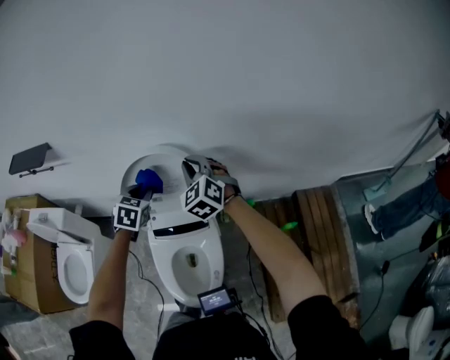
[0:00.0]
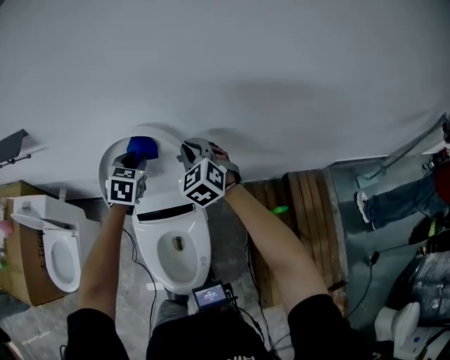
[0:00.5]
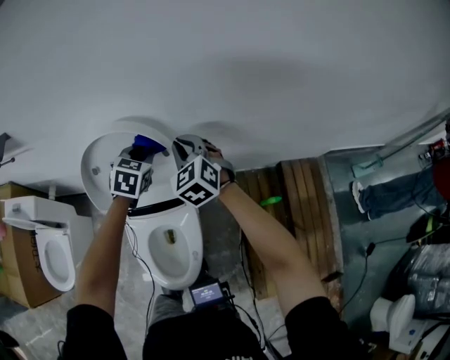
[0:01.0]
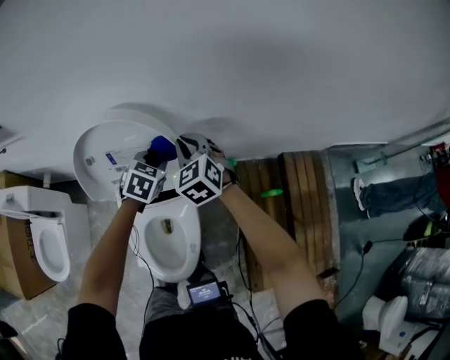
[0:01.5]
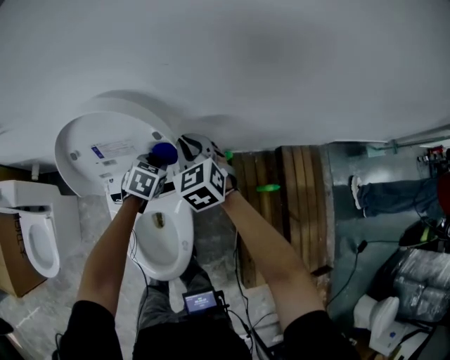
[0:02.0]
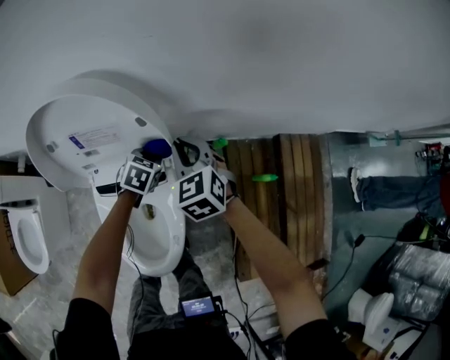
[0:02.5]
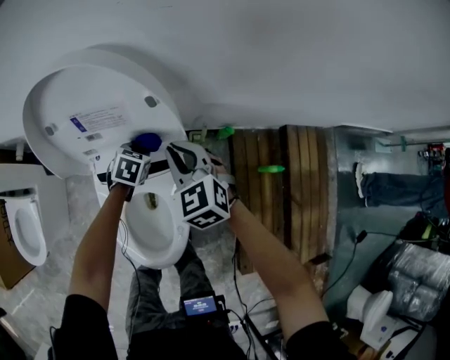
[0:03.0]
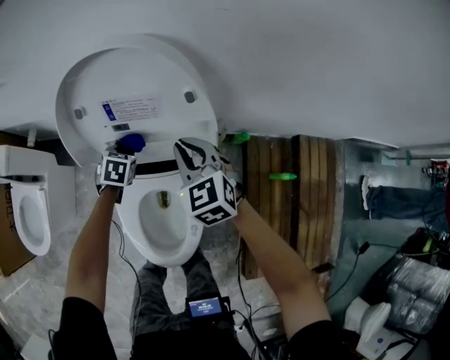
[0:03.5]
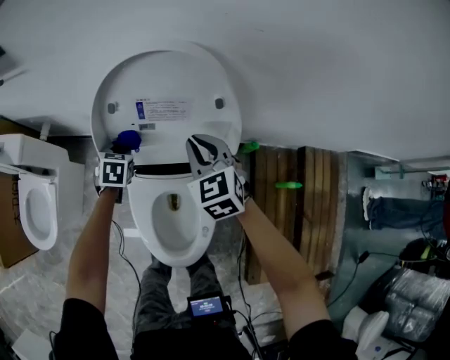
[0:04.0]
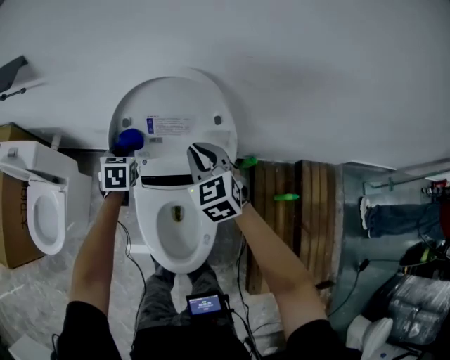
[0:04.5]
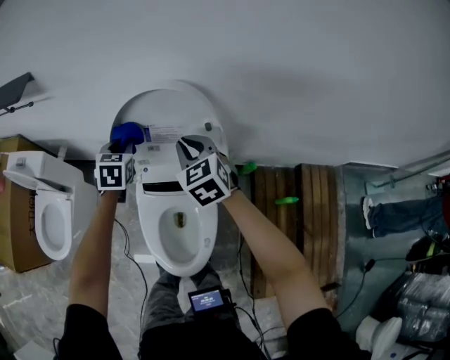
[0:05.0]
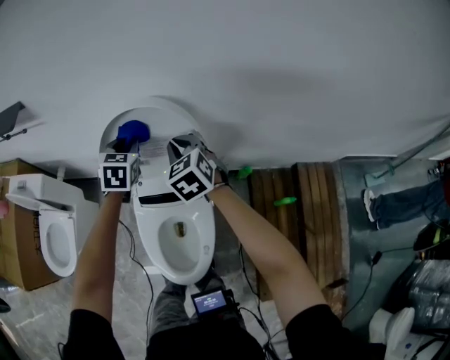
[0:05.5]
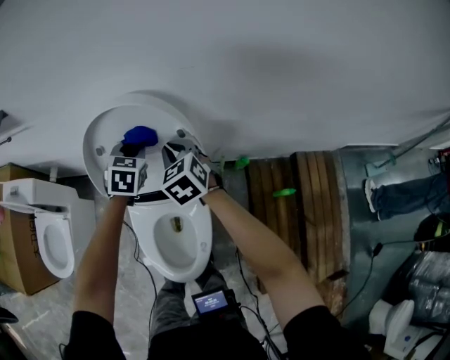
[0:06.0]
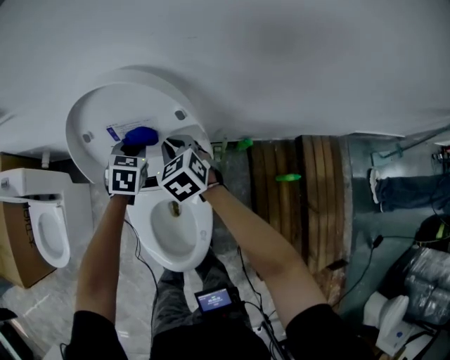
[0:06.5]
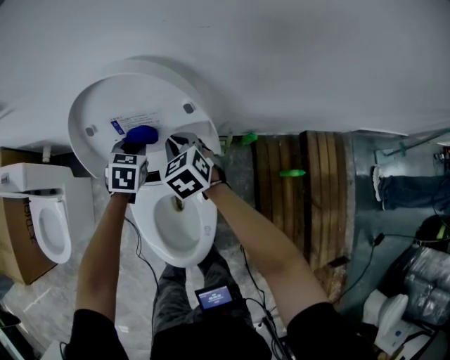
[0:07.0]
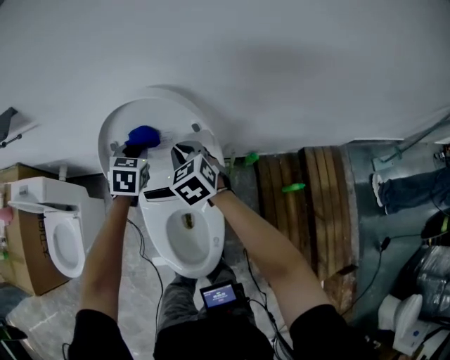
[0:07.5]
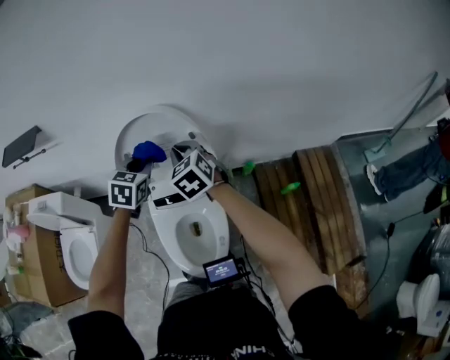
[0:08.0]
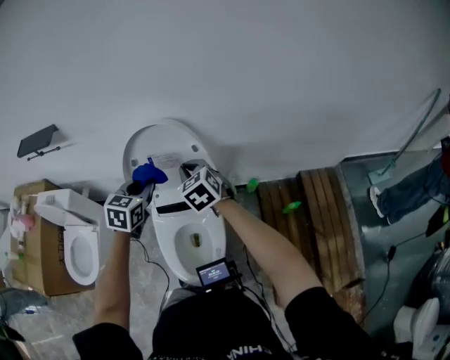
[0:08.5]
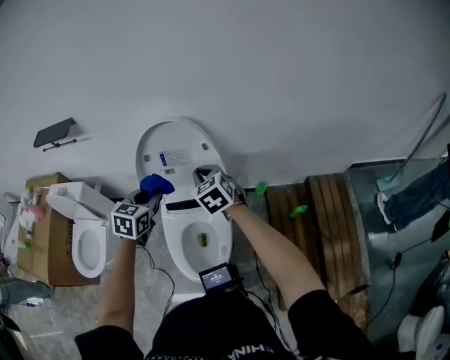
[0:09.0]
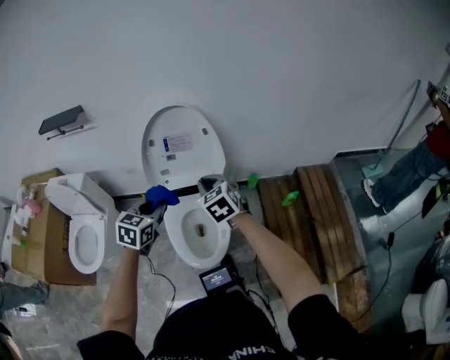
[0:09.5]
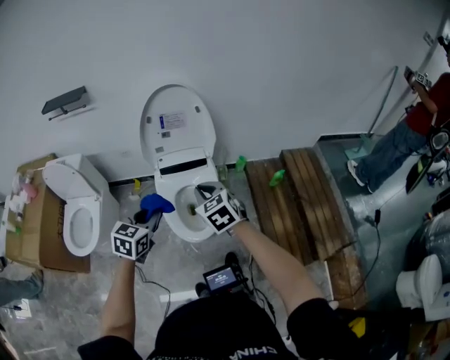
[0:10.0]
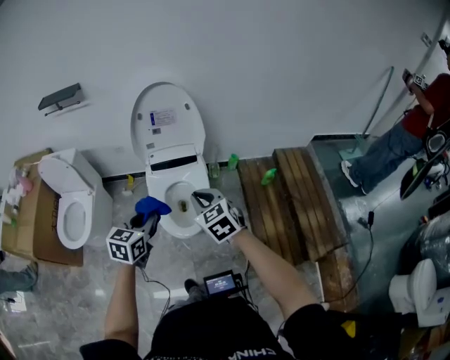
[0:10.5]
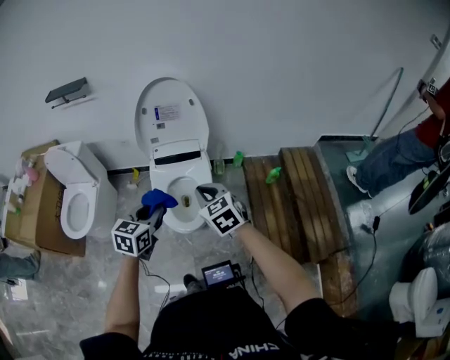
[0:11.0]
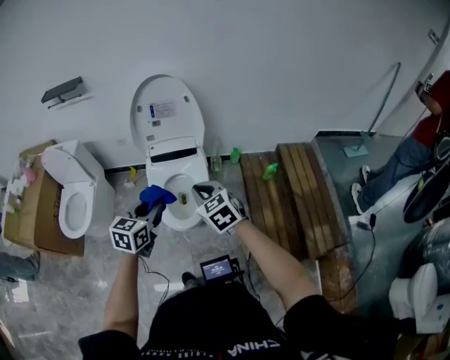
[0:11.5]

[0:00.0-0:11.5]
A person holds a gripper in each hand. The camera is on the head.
0:00.0 to 0:02.0: The grippers both shift downward and to the right by some 25 cm. The left gripper changes its angle by some 20 degrees. The right gripper turns by approximately 20 degrees.
0:02.0 to 0:04.0: The right gripper heads to the left and backward, covering approximately 15 cm; the left gripper goes about 30 cm to the left, and swivels about 30 degrees.
0:04.0 to 0:06.0: The left gripper heads upward and to the right, covering about 25 cm.
0:06.0 to 0:07.5: The left gripper moves approximately 10 cm downward and comes back, while the right gripper reaches roughly 10 cm downward, then returns.
0:07.5 to 0:09.5: Both grippers move backward, some 30 cm.
0:09.5 to 0:11.5: Both grippers travel together backward, approximately 25 cm.

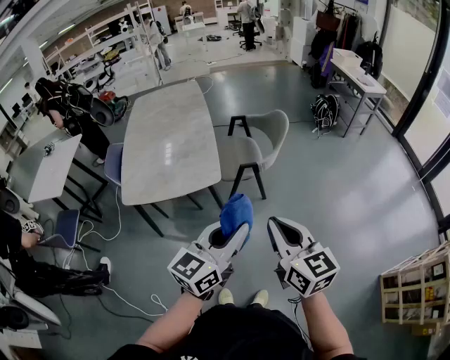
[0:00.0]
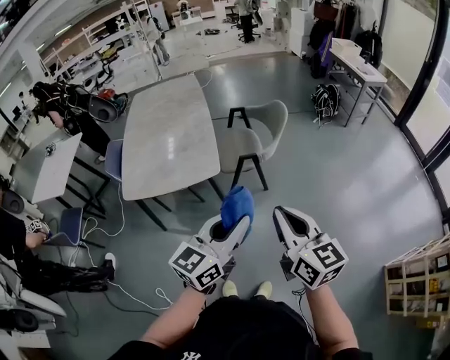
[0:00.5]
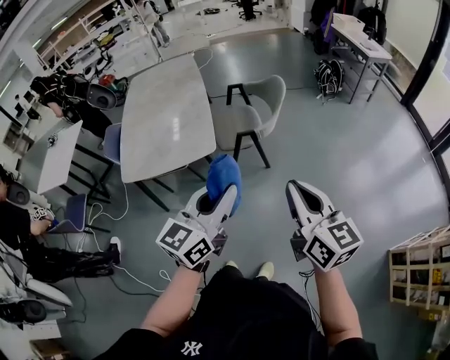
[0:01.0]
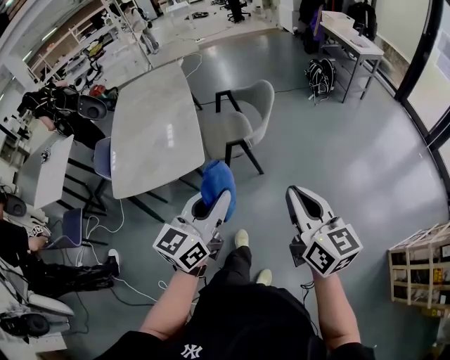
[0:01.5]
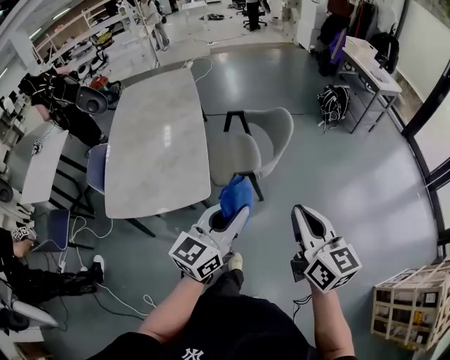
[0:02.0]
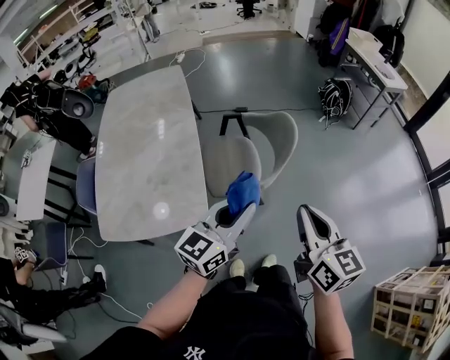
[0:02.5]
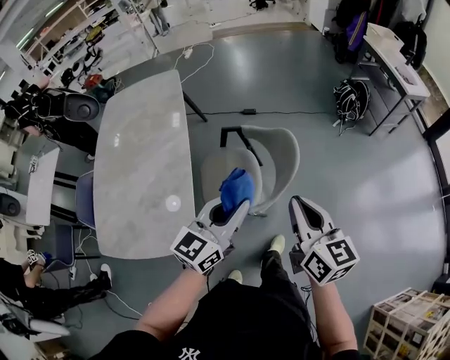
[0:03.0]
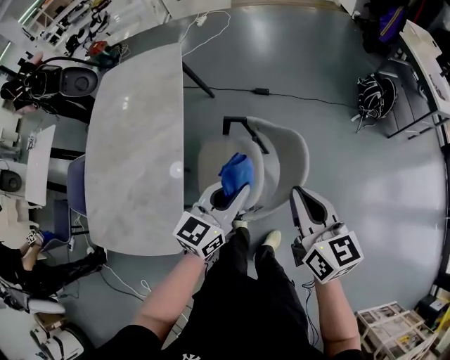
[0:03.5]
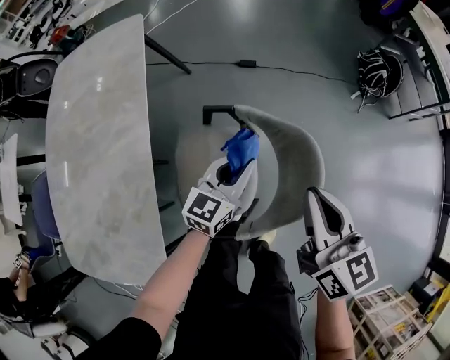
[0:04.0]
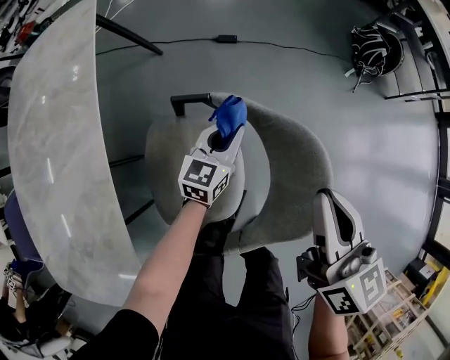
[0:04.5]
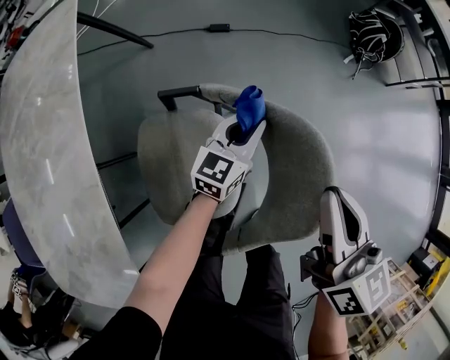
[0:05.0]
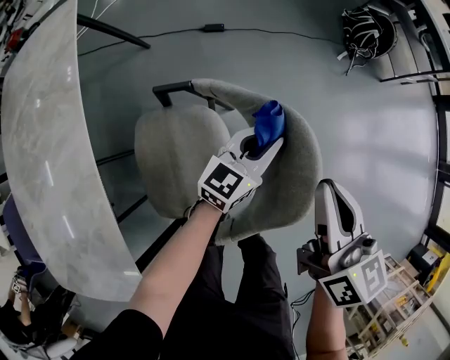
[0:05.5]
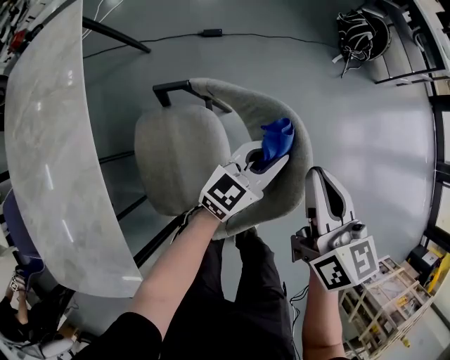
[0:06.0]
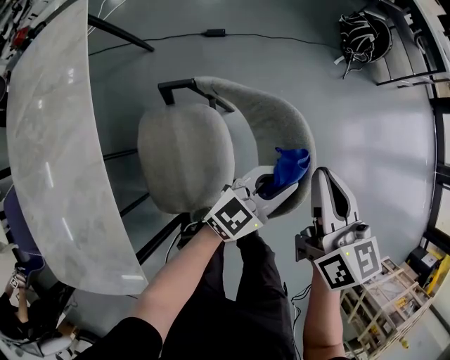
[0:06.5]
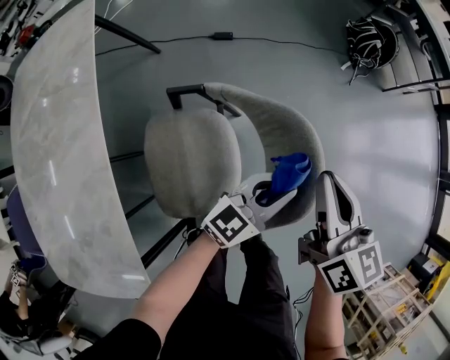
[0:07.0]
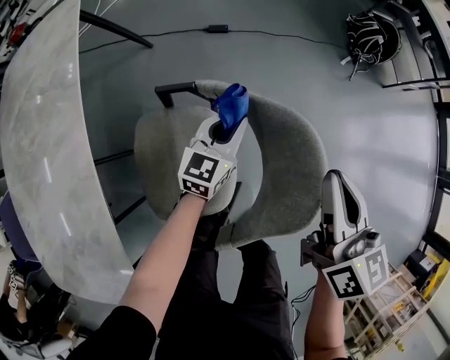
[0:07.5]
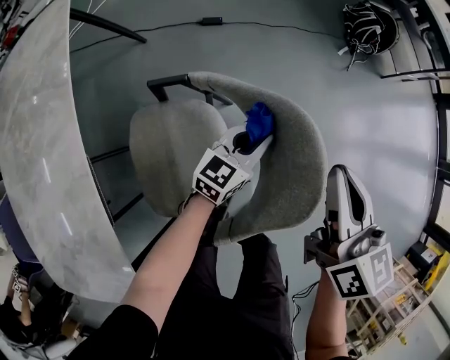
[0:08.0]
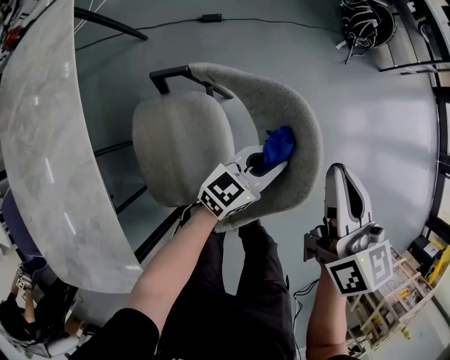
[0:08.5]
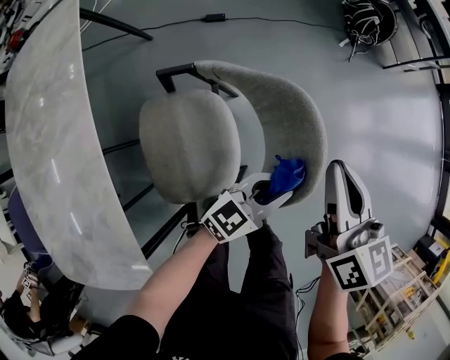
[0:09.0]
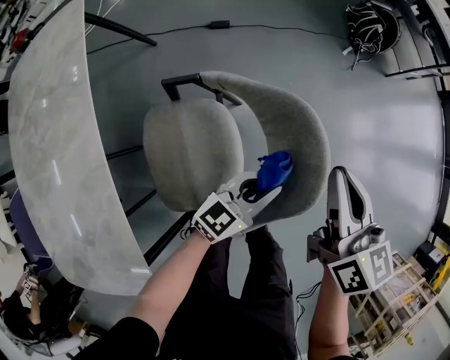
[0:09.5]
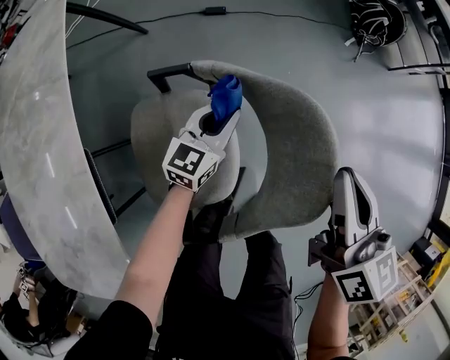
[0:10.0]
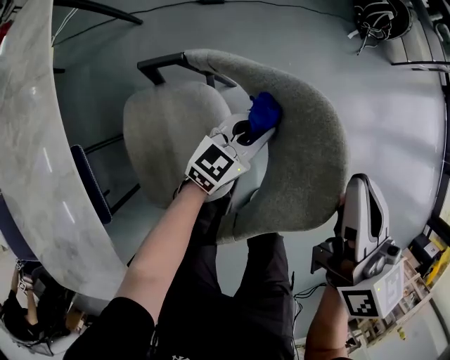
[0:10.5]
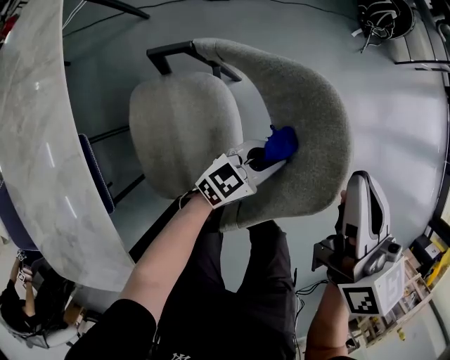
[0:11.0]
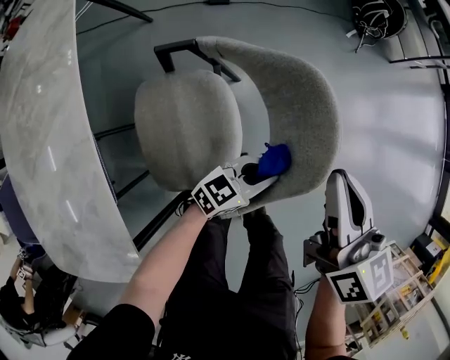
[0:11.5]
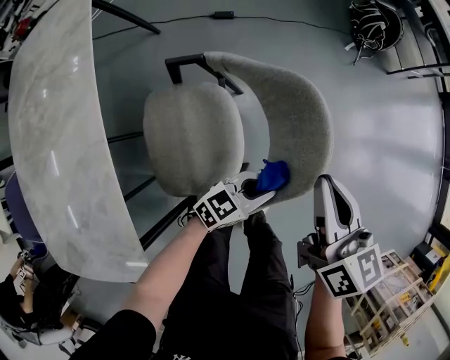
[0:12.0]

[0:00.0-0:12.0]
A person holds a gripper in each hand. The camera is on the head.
0:00.0 to 0:02.0: Both grippers travel together forward, roughly 20 cm.
0:02.0 to 0:04.0: The pair of grippers is taken forward, approximately 60 cm. The left gripper moves downward, about 30 cm.
0:04.0 to 0:06.0: The left gripper shifts about 20 cm to the right and downward, and turns by some 20 degrees; the right gripper goes some 15 cm downward and to the right.
0:06.0 to 0:08.0: The left gripper travels downward by roughly 10 cm, and moves approximately 15 cm to the left and comes back.
0:08.0 to 0:10.0: The left gripper travels to the left by approximately 10 cm.
0:10.0 to 0:12.0: The right gripper heads backward, covering approximately 10 cm, while the left gripper heads backward and to the right, covering approximately 25 cm, and swivels some 30 degrees.

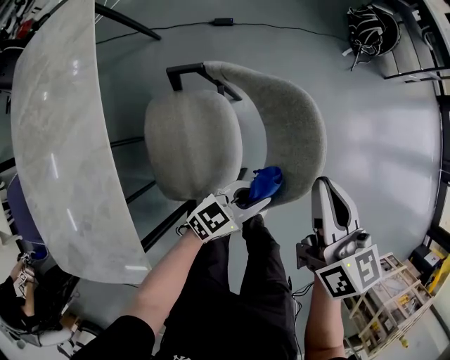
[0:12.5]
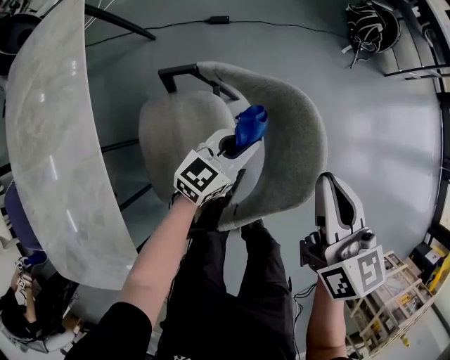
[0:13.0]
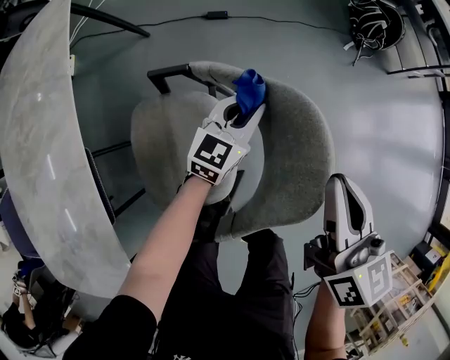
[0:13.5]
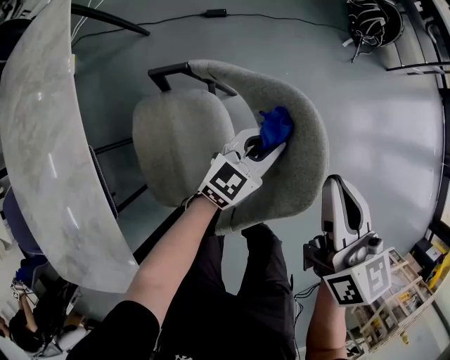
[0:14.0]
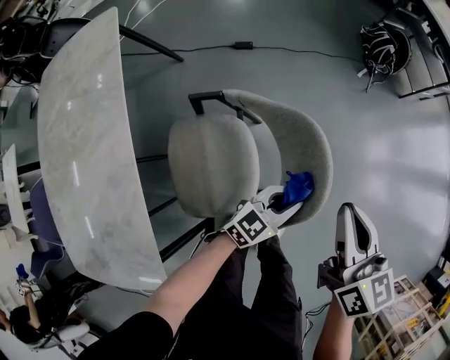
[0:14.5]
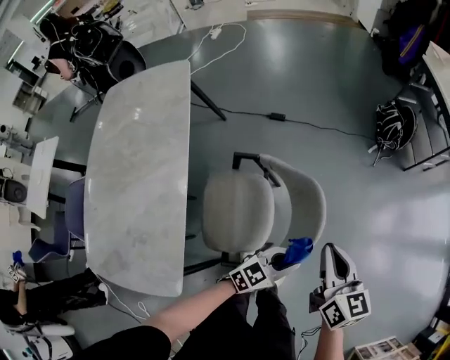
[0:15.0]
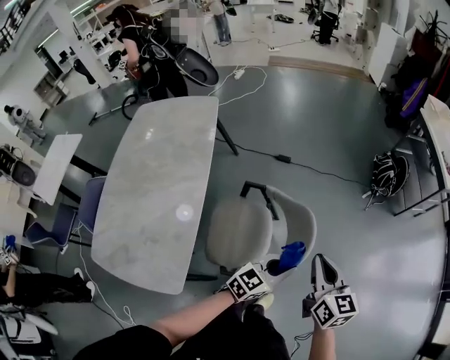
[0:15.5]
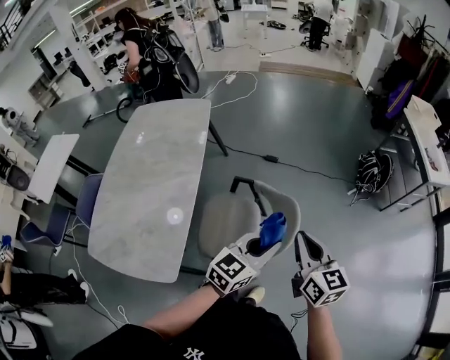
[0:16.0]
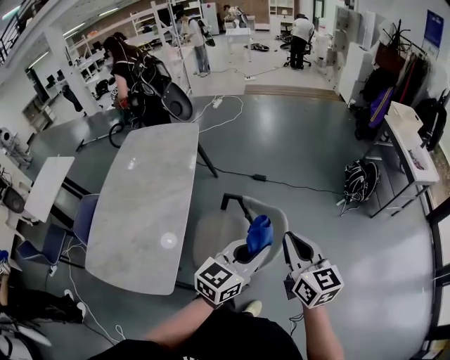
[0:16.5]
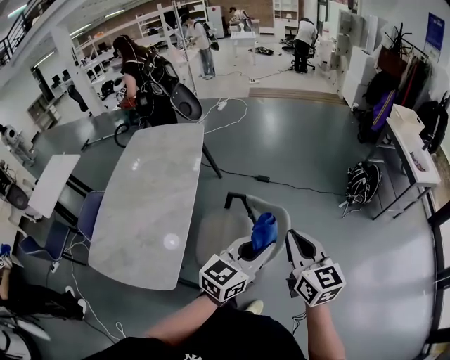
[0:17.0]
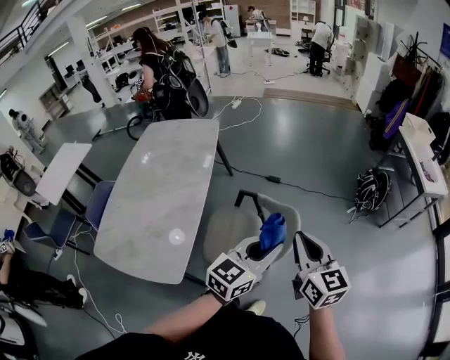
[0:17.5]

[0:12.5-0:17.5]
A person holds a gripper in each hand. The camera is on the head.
0:12.5 to 0:15.0: The two grippers go roughly 10 cm upward. The left gripper moves about 25 cm forward and comes back.
0:15.0 to 0:17.5: The right gripper moves upward and backward, some 25 cm, and rotates roughly 20 degrees, while the left gripper moves upward, some 35 cm, and rotates roughly 40 degrees.
